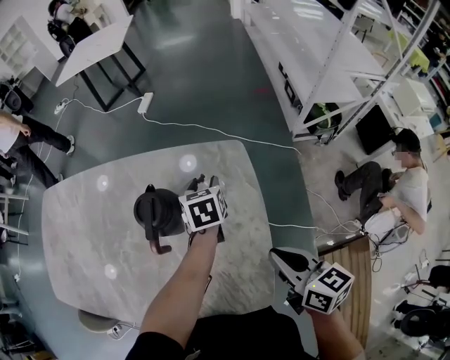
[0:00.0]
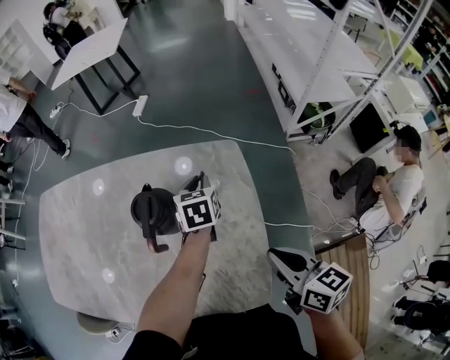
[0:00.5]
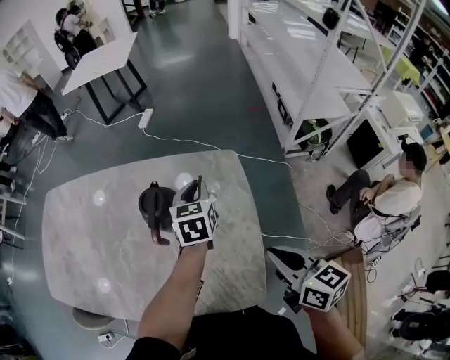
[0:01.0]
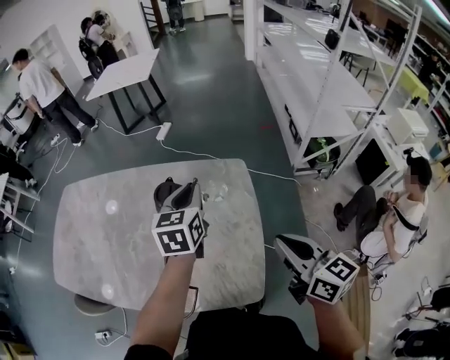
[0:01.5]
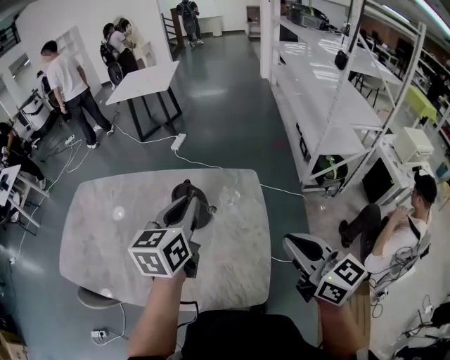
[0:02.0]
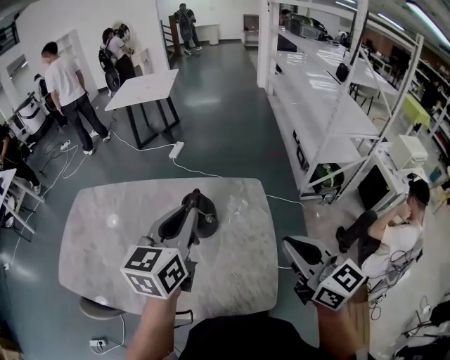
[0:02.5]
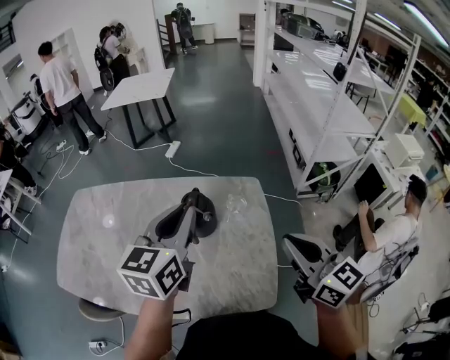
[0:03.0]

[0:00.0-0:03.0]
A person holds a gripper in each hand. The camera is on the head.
0:00.0 to 0:01.5: The left gripper travels upward and backward by roughly 20 cm, rotates some 20 degrees, and closes, while the right gripper is displaced upward by some 10 cm.
0:01.5 to 0:03.0: The right gripper is displaced upward and to the left by approximately 10 cm; the left gripper shifts approximately 20 cm upward, to the left and backward.

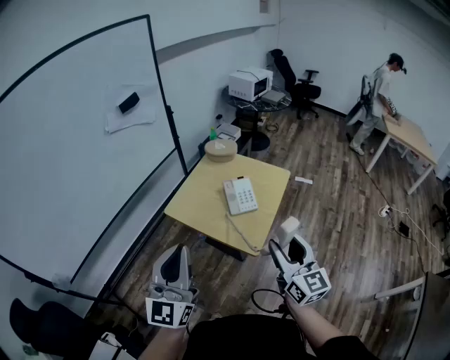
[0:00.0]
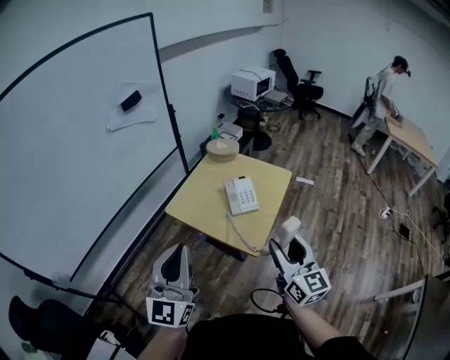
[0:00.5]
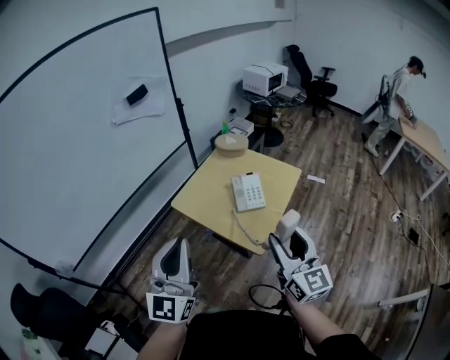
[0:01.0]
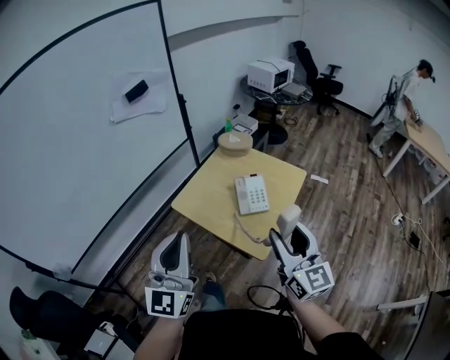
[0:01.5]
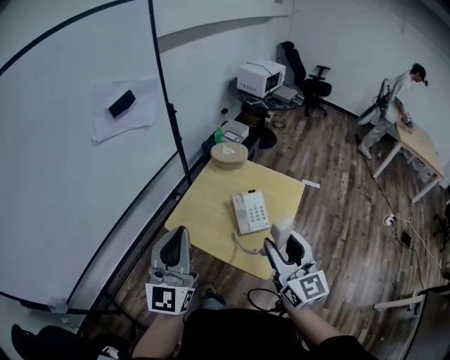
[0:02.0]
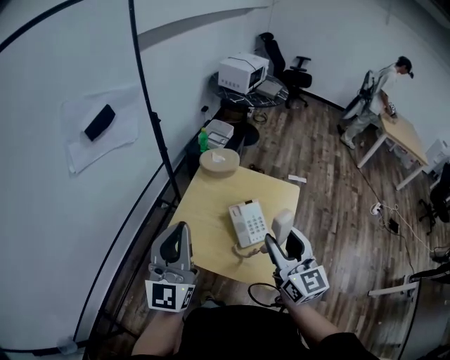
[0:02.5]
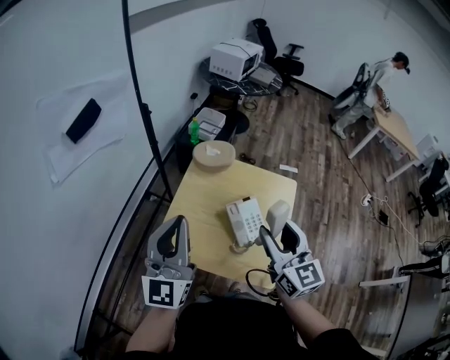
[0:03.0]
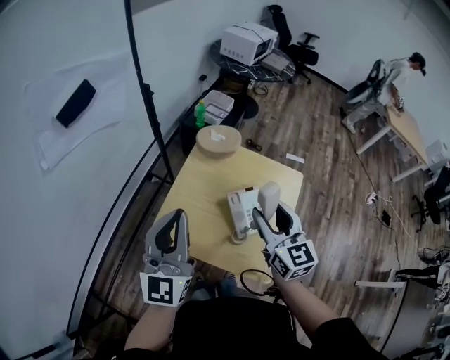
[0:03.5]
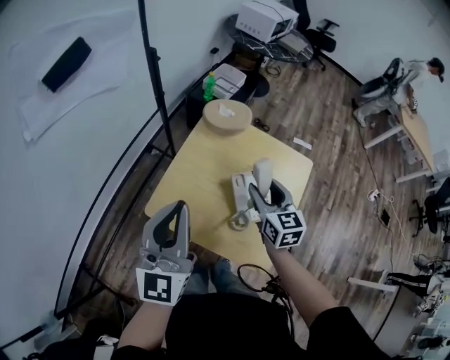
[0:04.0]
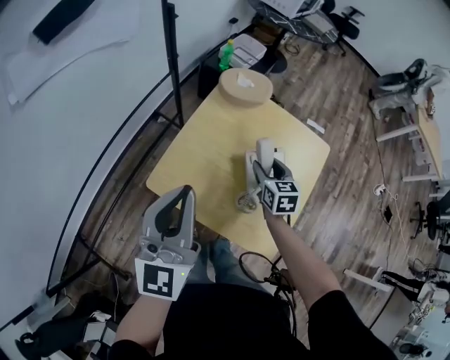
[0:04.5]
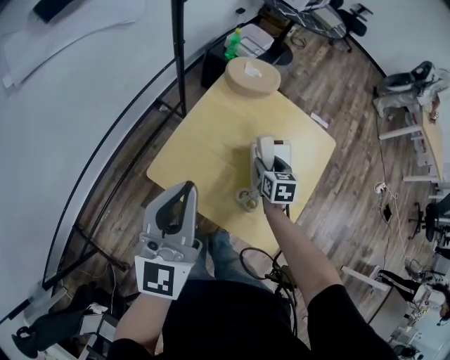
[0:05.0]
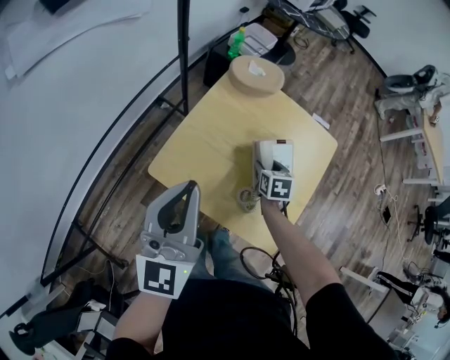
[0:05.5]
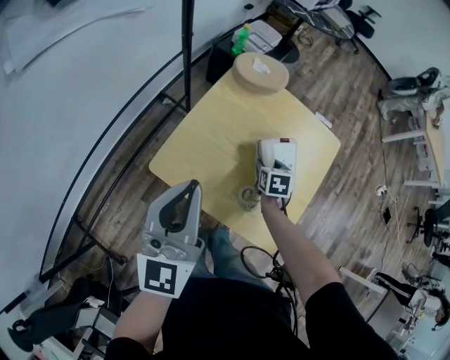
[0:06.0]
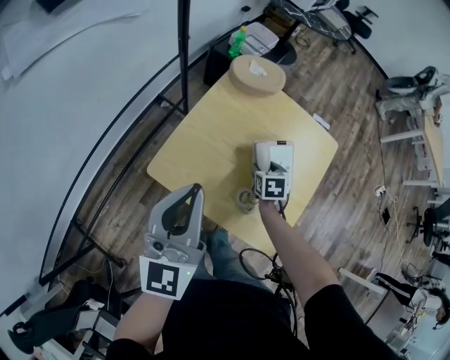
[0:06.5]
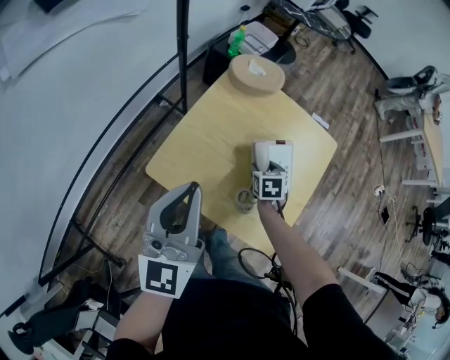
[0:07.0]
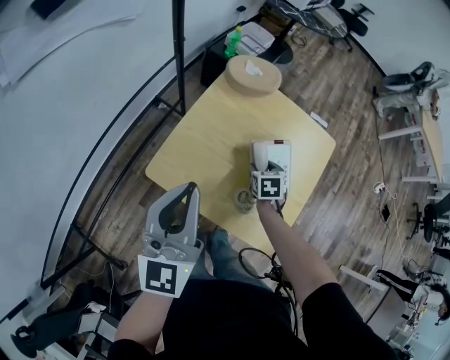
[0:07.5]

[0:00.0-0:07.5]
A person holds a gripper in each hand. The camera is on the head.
0:00.0 to 0:02.0: The two grippers go about 20 cm forward.
0:02.0 to 0:04.0: The left gripper heads forward and downward, covering about 20 cm. Meanwhile the right gripper moves forward and downward, some 35 cm, and rotates about 30 degrees.
0:04.0 to 0:05.5: The left gripper heads downward, covering about 5 cm. The right gripper is displaced downward by some 20 cm, and rotates roughly 30 degrees.
0:05.5 to 0:07.5: The grippers stay close to where they were, moving slightly.

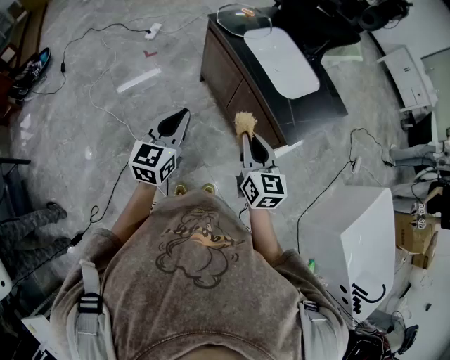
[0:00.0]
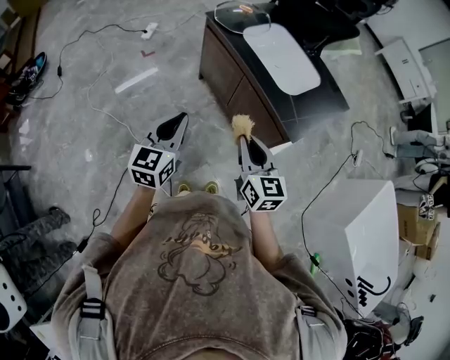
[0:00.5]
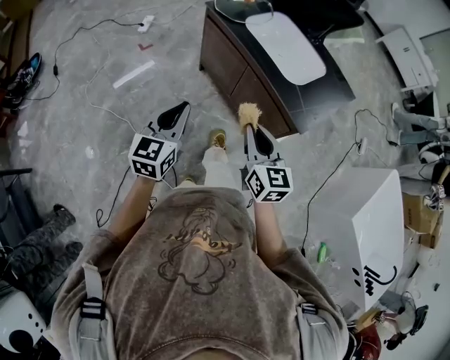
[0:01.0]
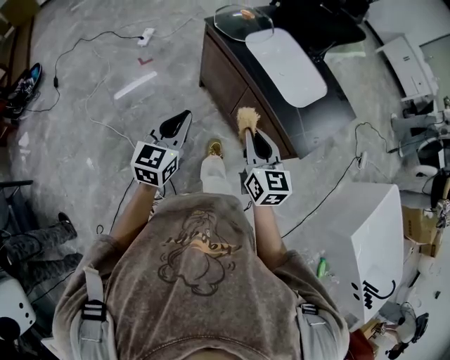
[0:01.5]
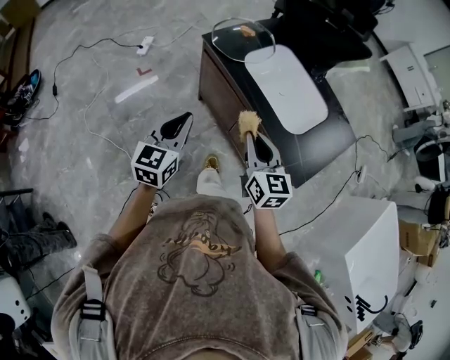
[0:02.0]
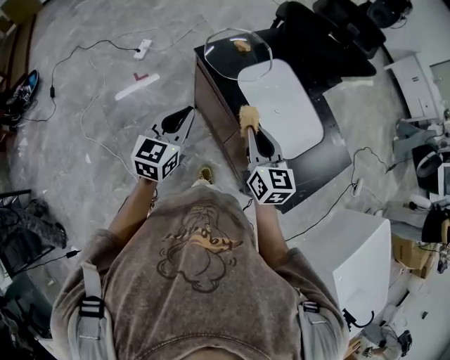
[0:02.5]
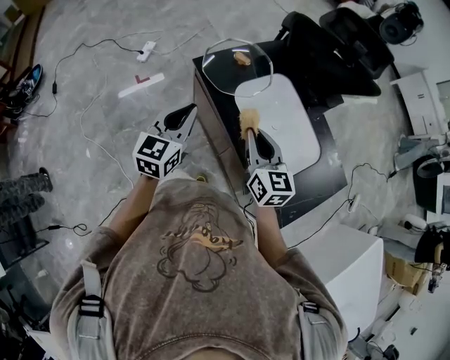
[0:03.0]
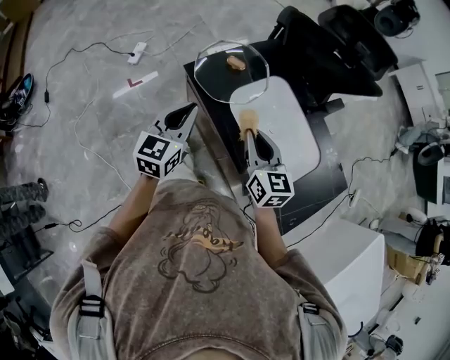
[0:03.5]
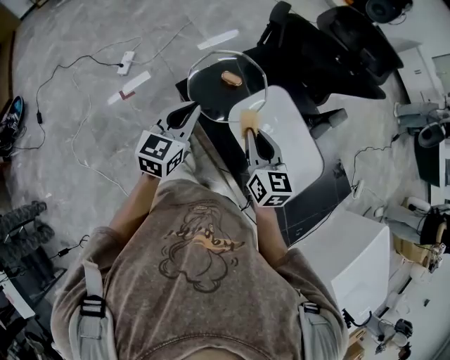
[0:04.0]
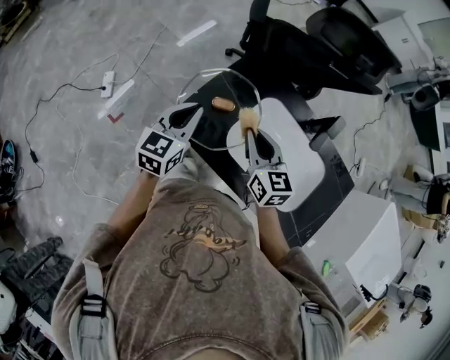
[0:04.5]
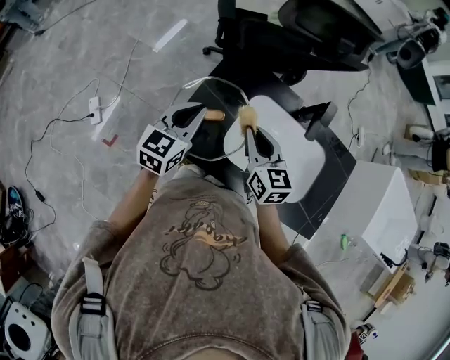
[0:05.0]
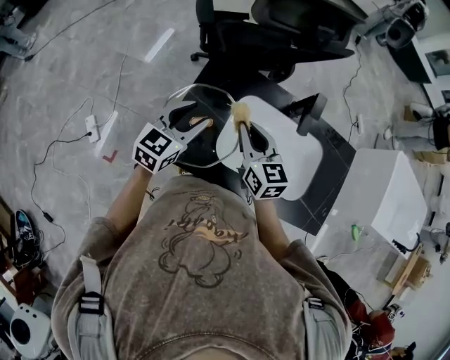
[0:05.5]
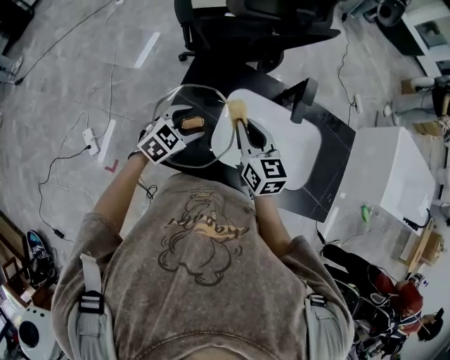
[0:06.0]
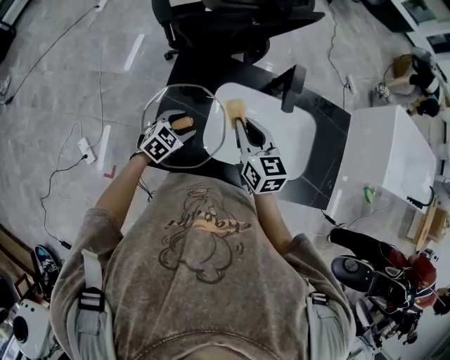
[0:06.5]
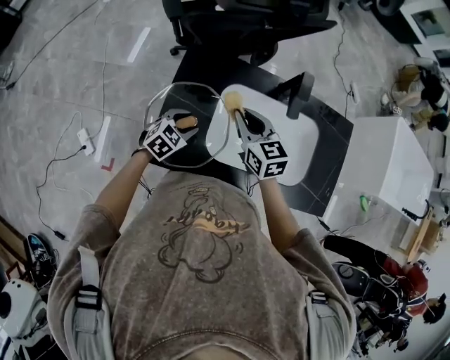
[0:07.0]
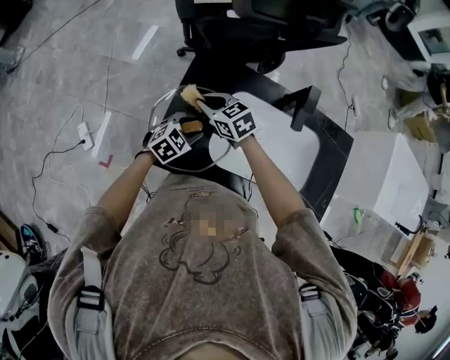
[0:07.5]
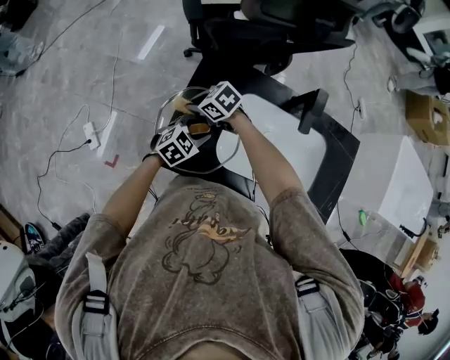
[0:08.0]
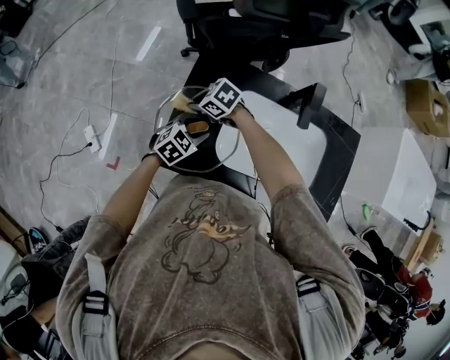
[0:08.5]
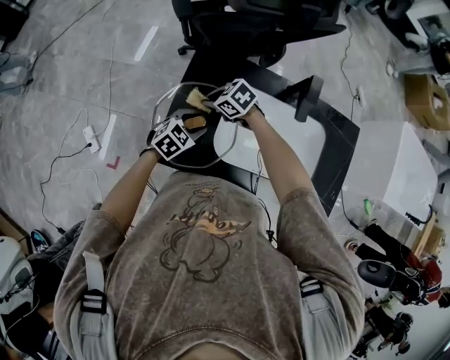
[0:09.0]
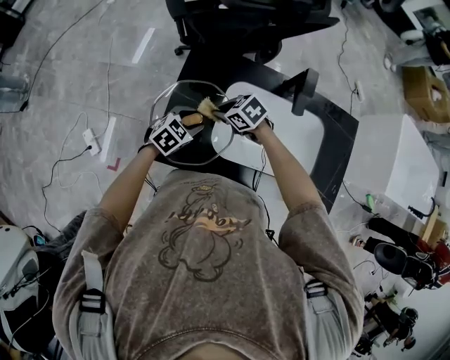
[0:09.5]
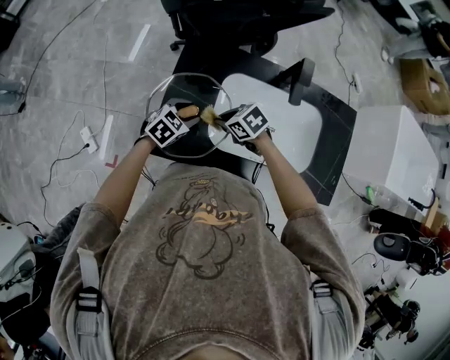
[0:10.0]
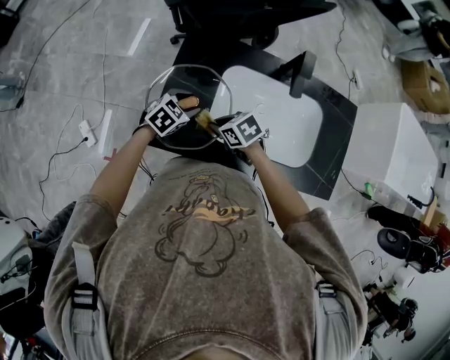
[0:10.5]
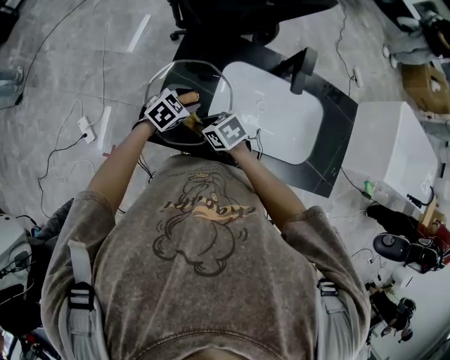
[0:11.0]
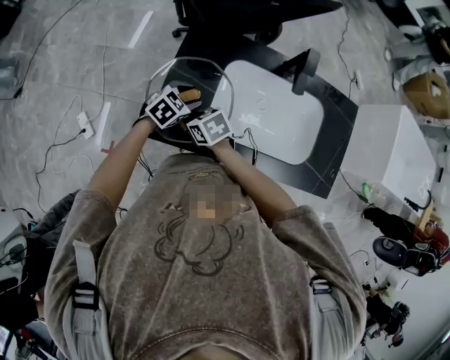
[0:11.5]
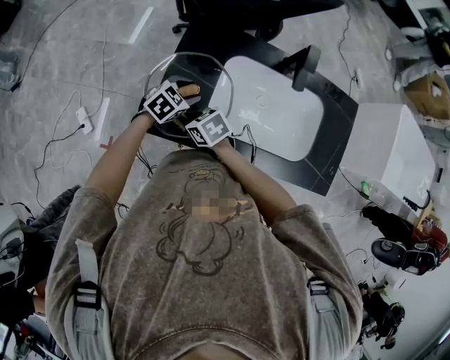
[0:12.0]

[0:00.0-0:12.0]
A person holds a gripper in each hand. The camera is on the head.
0:00.0 to 0:02.0: Both grippers travel together forward, some 20 cm.
0:02.0 to 0:04.0: The grippers both shift forward by roughly 35 cm.
0:04.0 to 0:06.0: The right gripper shifts by roughly 15 cm, and rotates some 30 degrees; the left gripper changes place by about 20 cm, swivels approximately 70 degrees, and opens its fingers.
0:06.0 to 0:08.0: The left gripper goes roughly 5 cm downward, and closes its fingers, while the right gripper changes place by approximately 25 cm, and swivels some 60 degrees.
0:08.0 to 0:10.0: The right gripper ends up about 15 cm from where it was.
0:10.0 to 0:12.0: The right gripper shifts by about 10 cm.

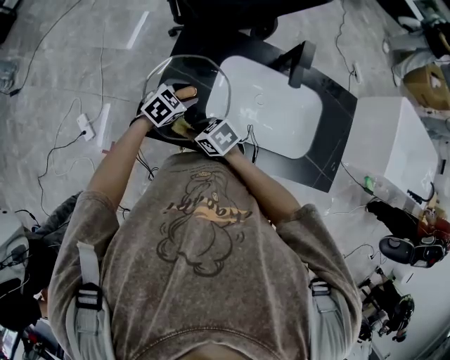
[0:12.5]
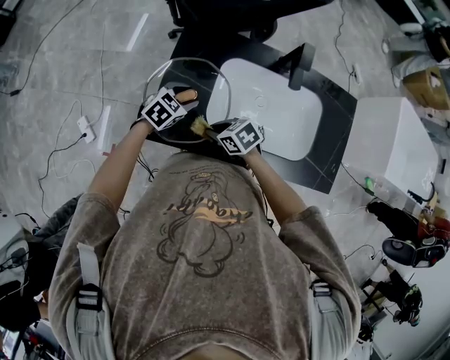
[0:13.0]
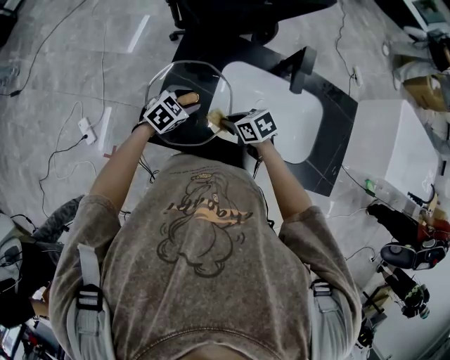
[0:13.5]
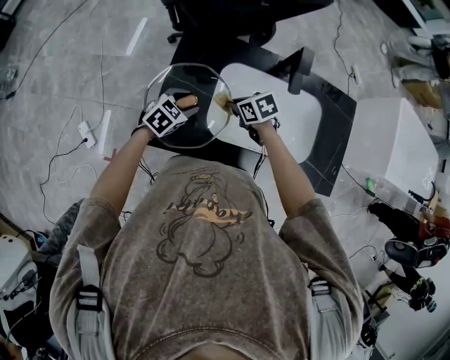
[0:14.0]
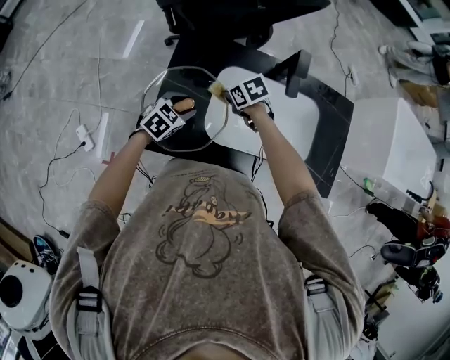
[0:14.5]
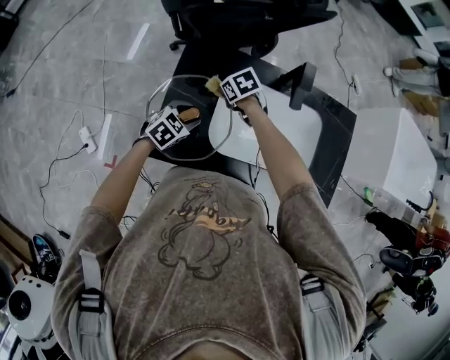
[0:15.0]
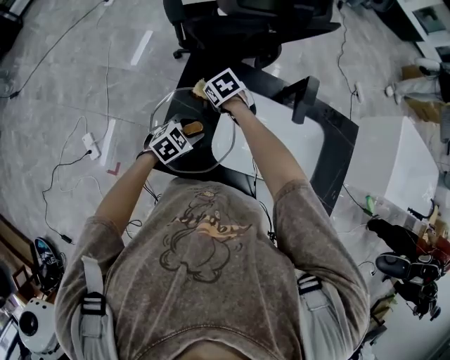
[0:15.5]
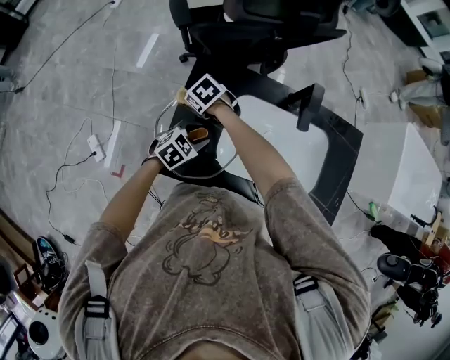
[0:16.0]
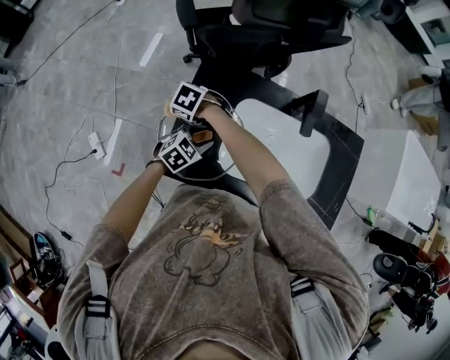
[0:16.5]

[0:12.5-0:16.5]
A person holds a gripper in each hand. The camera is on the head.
0:12.5 to 0:14.5: The right gripper ends up roughly 20 cm from where it was.
0:14.5 to 0:16.5: The right gripper moves about 25 cm, and changes its angle by roughly 40 degrees.
